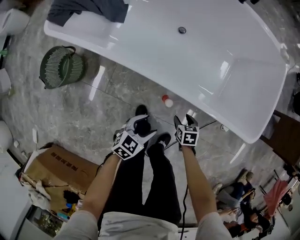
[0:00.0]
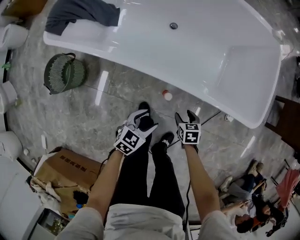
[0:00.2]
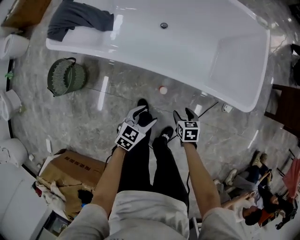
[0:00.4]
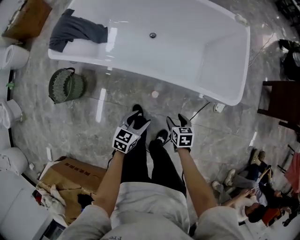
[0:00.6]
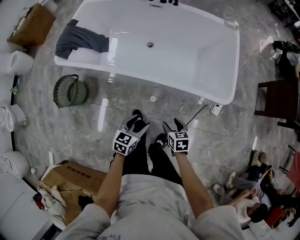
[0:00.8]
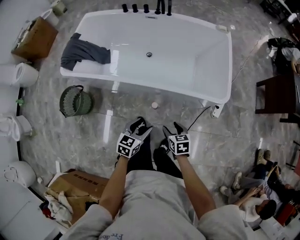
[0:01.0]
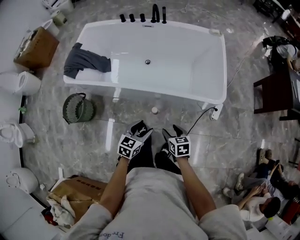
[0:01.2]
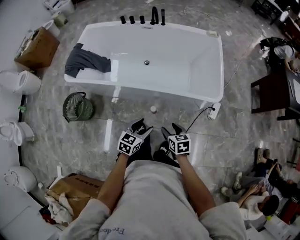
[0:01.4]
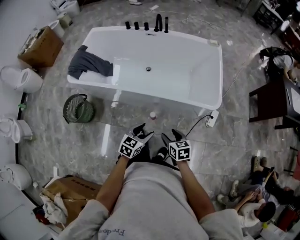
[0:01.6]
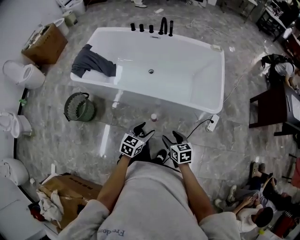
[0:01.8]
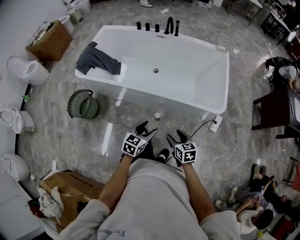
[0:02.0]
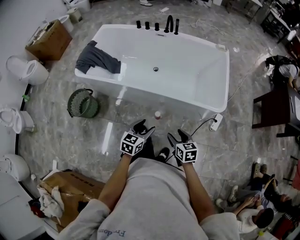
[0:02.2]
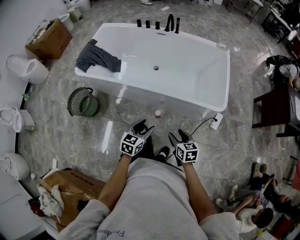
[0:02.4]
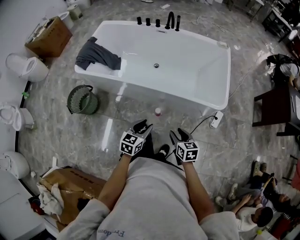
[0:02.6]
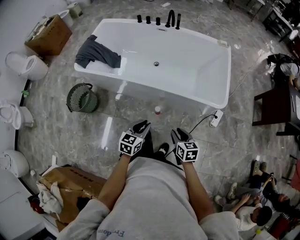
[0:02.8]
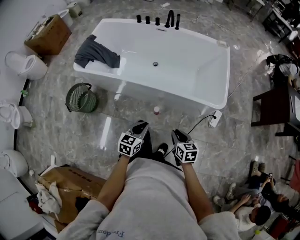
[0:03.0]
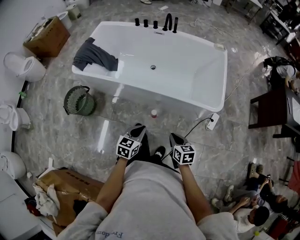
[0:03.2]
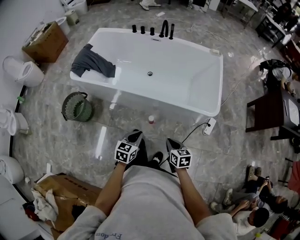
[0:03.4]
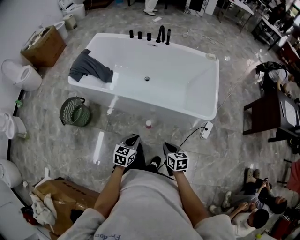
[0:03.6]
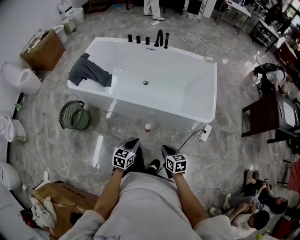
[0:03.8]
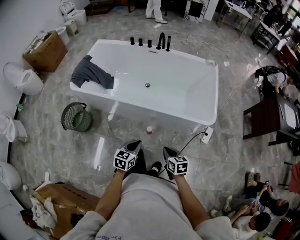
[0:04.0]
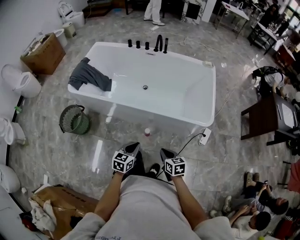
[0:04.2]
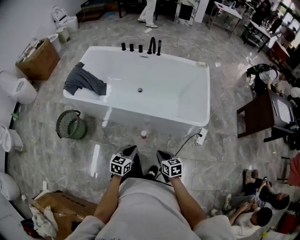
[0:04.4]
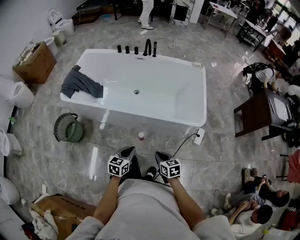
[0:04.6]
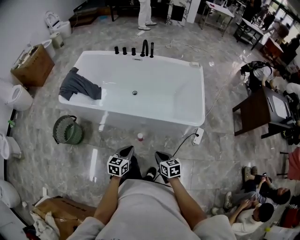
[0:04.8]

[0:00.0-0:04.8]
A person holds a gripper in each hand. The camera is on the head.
0:00.0 to 0:01.6: The left gripper moves upward and to the right, about 30 cm, while the right gripper goes approximately 40 cm upward and backward, and swivels some 30 degrees.
0:01.6 to 0:03.2: The left gripper closes its fingers. The right gripper closes up.
0:03.2 to 0:04.8: The grippers stay close to where they were, moving slightly.

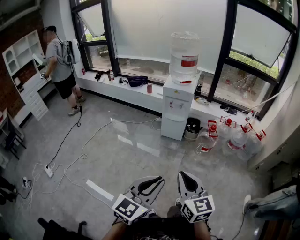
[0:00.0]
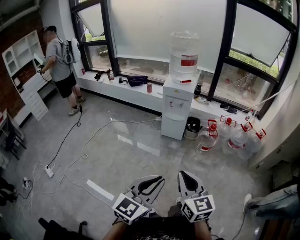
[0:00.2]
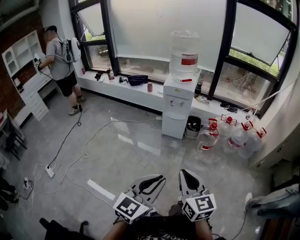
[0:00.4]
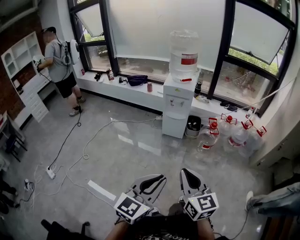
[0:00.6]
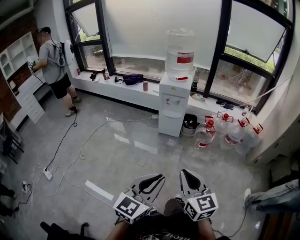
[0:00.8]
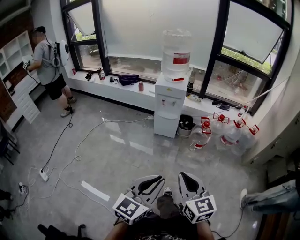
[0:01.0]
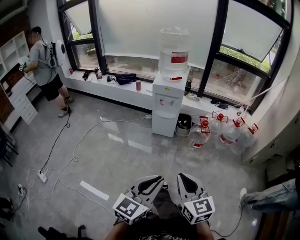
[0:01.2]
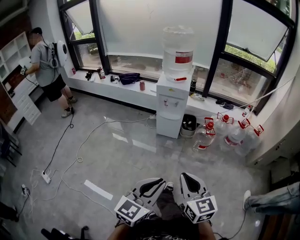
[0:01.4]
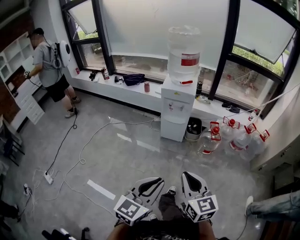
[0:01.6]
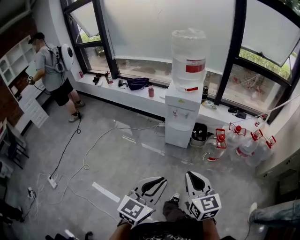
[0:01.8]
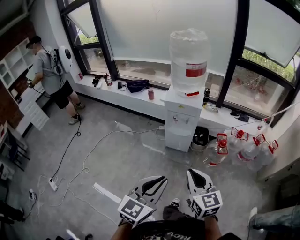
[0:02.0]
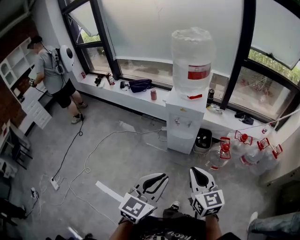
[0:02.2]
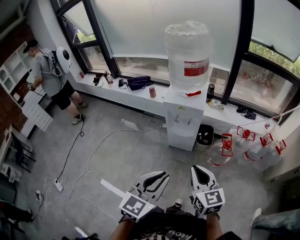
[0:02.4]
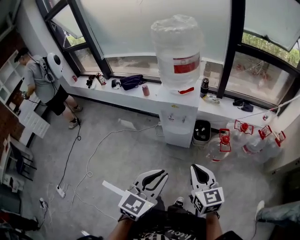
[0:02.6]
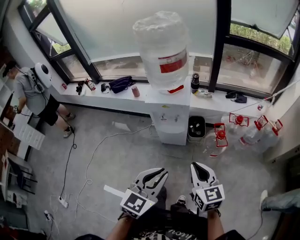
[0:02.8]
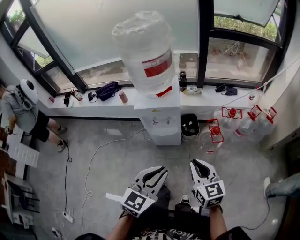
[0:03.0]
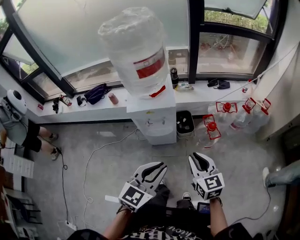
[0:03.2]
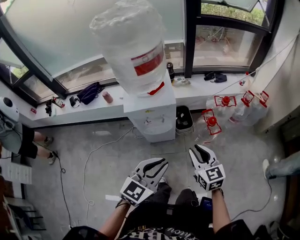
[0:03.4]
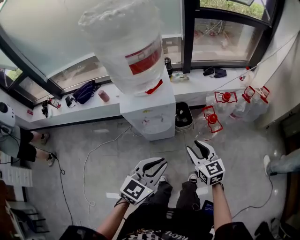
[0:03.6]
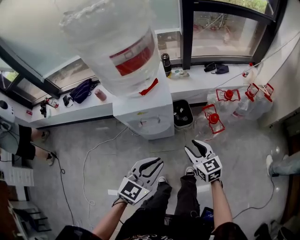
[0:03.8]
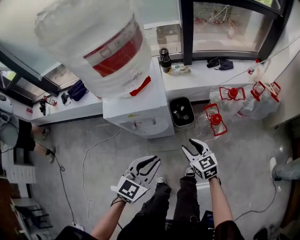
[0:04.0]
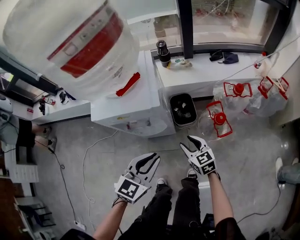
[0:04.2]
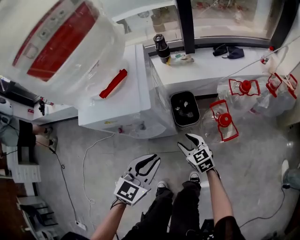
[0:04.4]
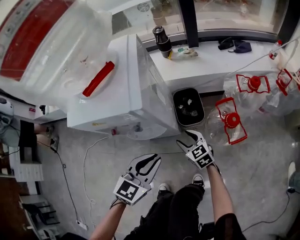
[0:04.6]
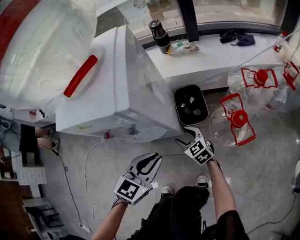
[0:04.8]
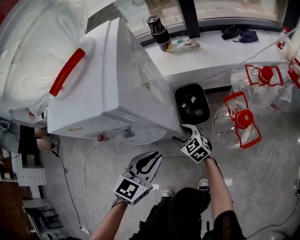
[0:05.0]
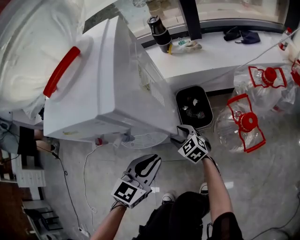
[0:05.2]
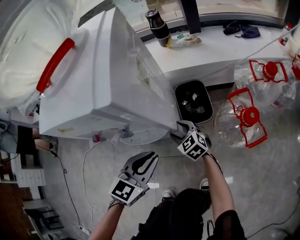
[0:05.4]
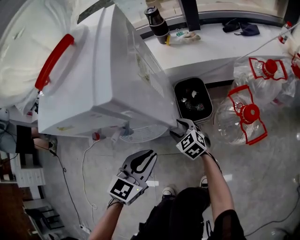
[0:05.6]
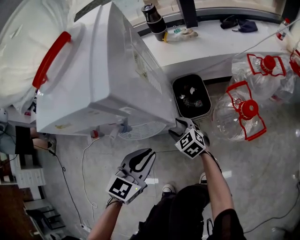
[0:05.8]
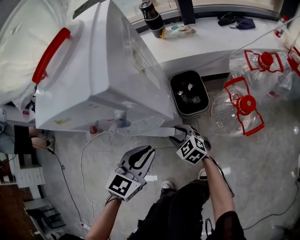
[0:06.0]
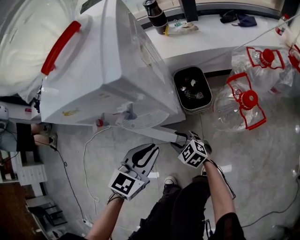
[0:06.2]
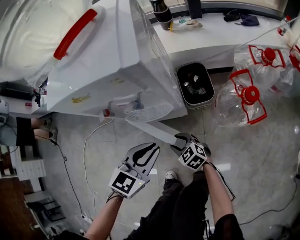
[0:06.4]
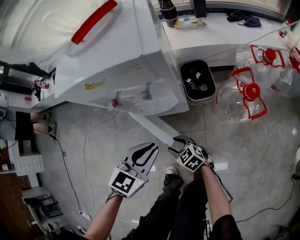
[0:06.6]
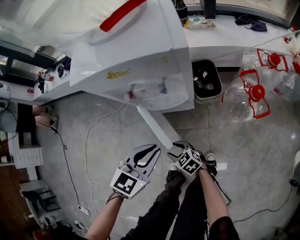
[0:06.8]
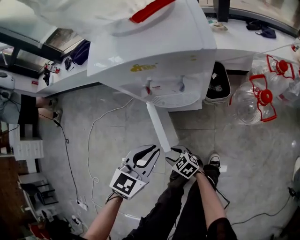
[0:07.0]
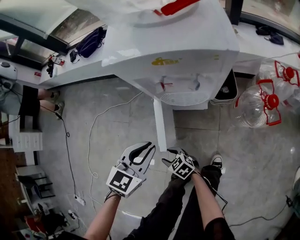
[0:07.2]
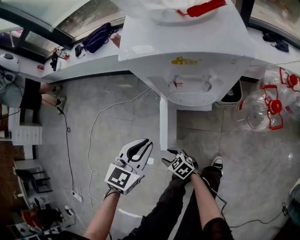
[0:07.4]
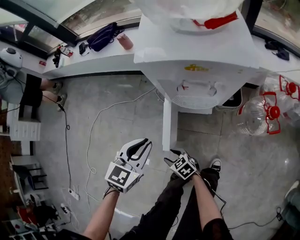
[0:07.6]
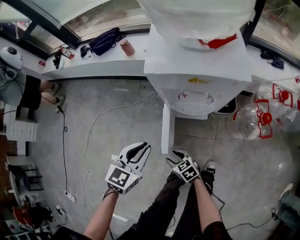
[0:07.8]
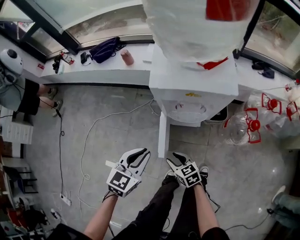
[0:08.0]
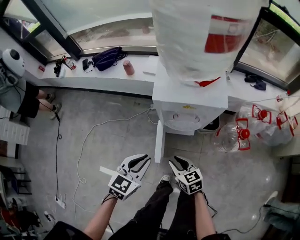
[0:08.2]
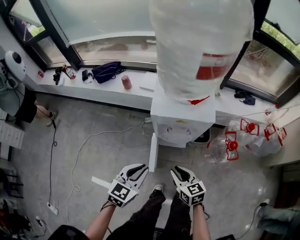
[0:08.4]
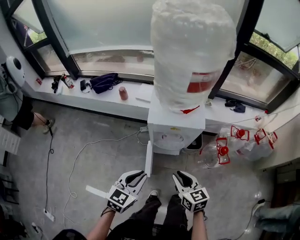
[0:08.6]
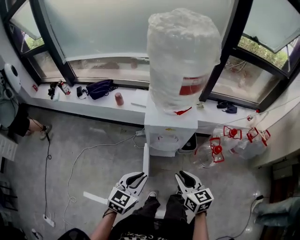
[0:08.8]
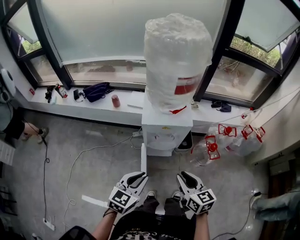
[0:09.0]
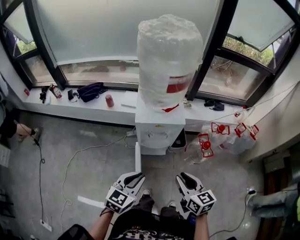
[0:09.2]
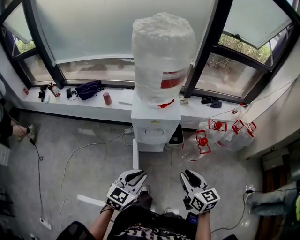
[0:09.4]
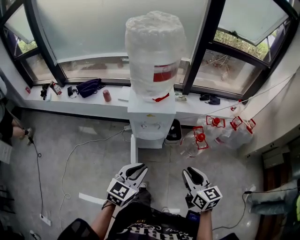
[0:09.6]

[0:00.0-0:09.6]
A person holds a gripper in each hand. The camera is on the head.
0:00.0 to 0:01.6: Both grippers travel together forward, approximately 15 cm.
0:01.6 to 0:03.2: The pair of grippers is taken forward, approximately 40 cm. The left gripper turns by some 20 degrees.
0:03.2 to 0:04.8: The grippers both shift downward and forward by about 60 cm. The right gripper changes its angle by approximately 30 degrees, and opens its fingers.
0:04.8 to 0:06.4: The left gripper is displaced to the left by approximately 5 cm. Meanwhile the right gripper goes roughly 15 cm backward, to the left and downward.
0:06.4 to 0:08.0: The right gripper is displaced upward and to the left by some 25 cm; the left gripper heads to the left and upward, covering roughly 30 cm.
0:08.0 to 0:09.6: The right gripper moves upward and to the right, some 50 cm, and swivels about 40 degrees; the left gripper goes approximately 30 cm upward, backward and to the right.

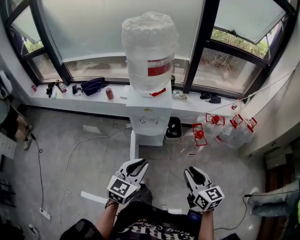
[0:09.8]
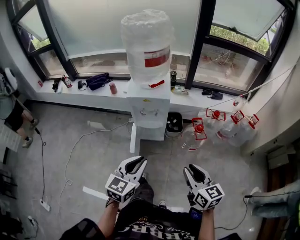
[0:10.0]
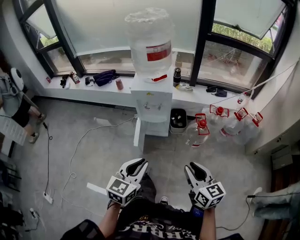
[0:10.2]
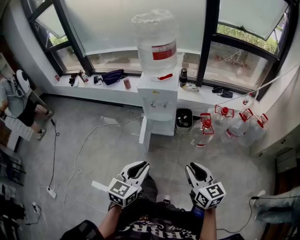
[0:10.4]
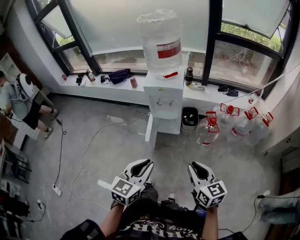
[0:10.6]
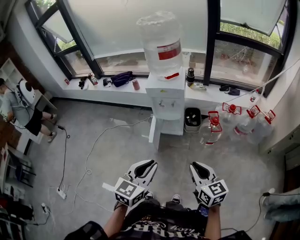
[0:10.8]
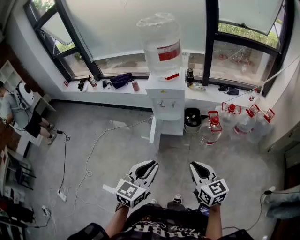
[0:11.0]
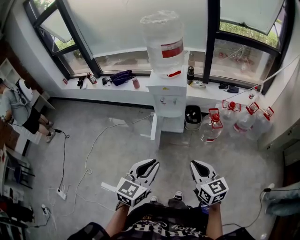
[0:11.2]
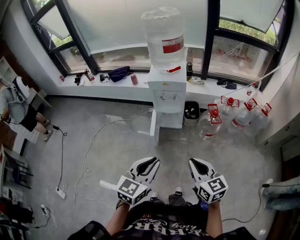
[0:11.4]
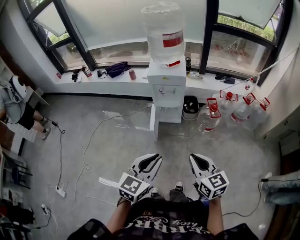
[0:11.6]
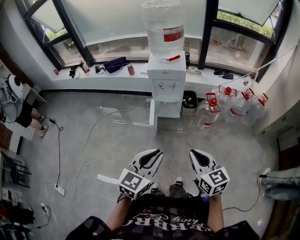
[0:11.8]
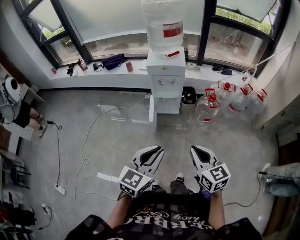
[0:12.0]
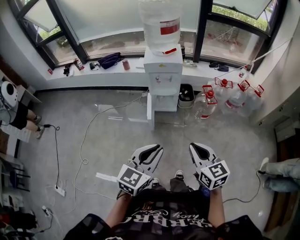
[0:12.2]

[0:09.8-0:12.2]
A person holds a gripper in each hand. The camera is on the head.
0:09.8 to 0:11.0: The two grippers go about 20 cm backward.
0:11.0 to 0:12.2: The grippers both shift to the left and backward by some 10 cm.

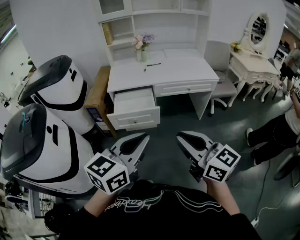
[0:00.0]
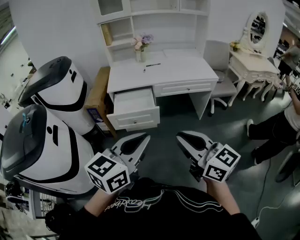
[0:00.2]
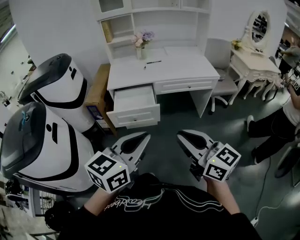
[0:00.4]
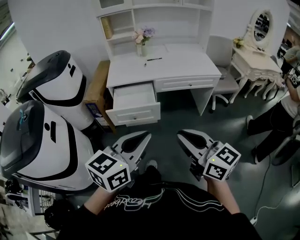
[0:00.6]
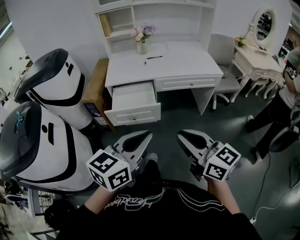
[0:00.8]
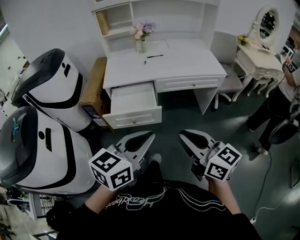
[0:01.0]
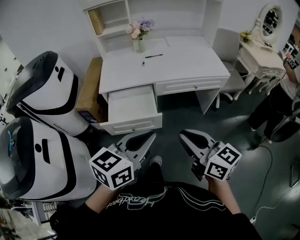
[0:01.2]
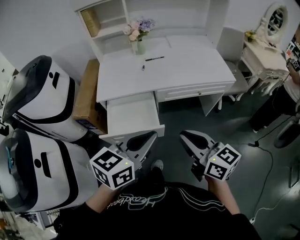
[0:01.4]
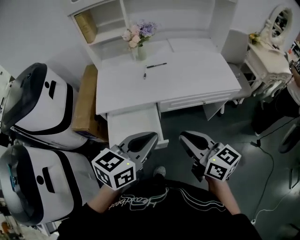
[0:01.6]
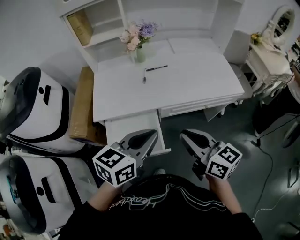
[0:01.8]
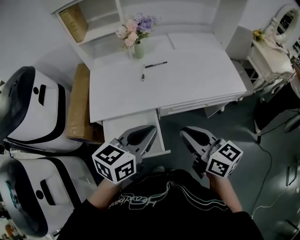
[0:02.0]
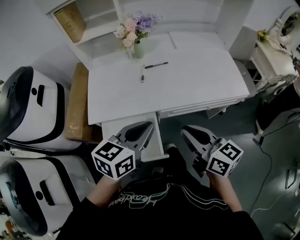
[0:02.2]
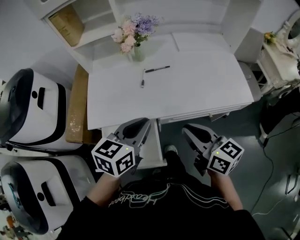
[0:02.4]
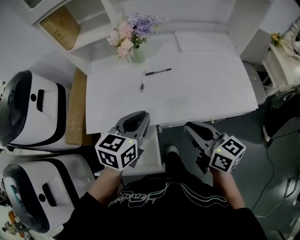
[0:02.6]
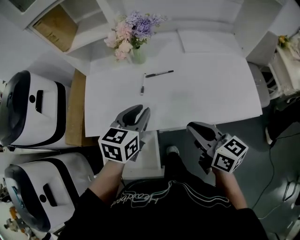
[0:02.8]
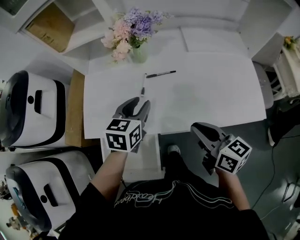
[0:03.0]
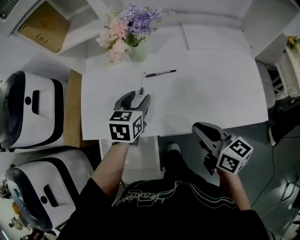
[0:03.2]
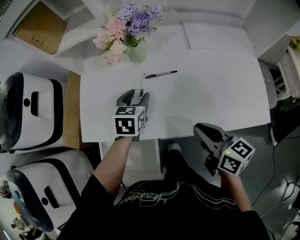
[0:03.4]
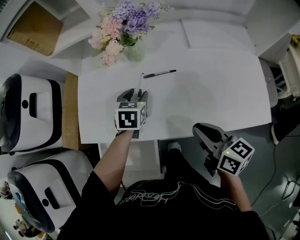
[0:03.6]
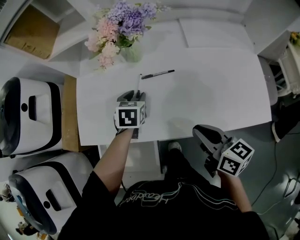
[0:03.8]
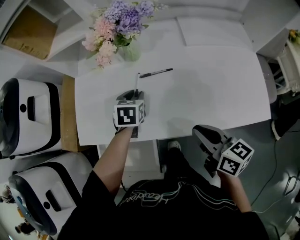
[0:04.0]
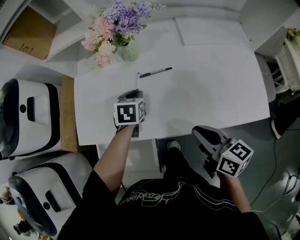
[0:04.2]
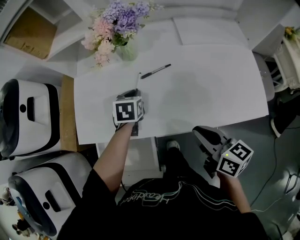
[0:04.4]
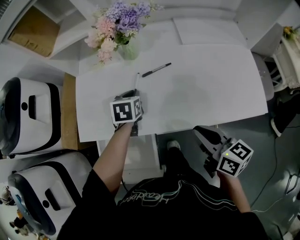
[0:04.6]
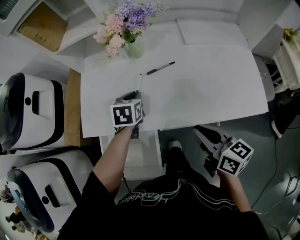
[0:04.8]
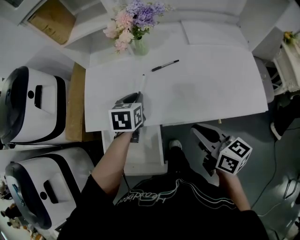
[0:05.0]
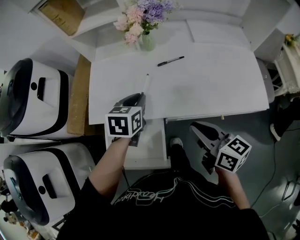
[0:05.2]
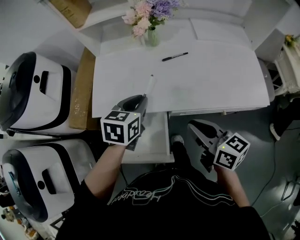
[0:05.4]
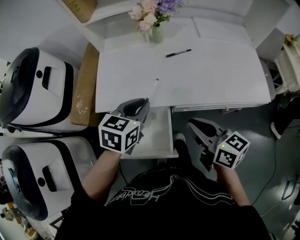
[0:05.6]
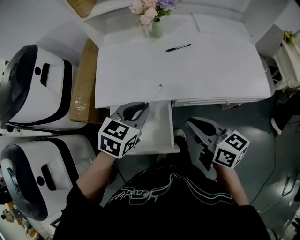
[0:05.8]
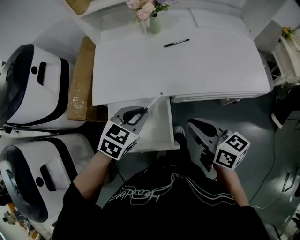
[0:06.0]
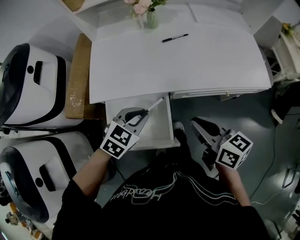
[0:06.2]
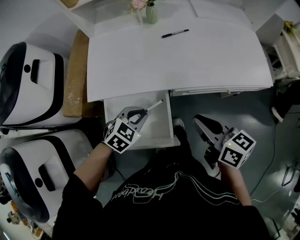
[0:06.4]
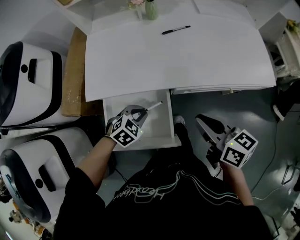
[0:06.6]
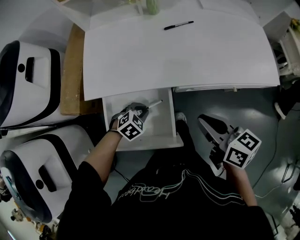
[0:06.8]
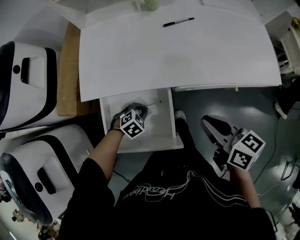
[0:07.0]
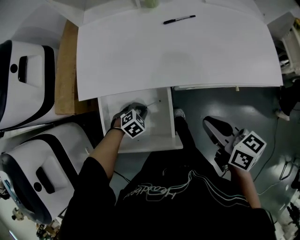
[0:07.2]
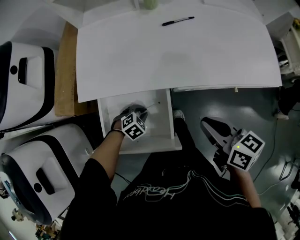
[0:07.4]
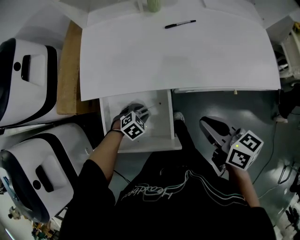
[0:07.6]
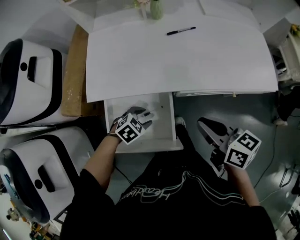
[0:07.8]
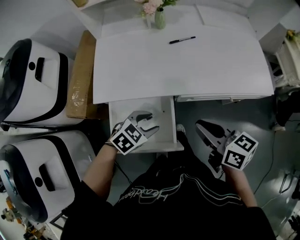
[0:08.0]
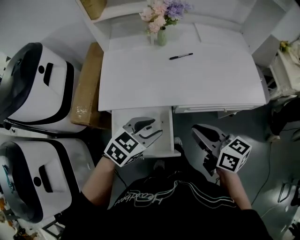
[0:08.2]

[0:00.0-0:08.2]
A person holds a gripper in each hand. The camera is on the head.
0:00.0 to 0:01.6: Both grippers travel together forward, approximately 40 cm.
0:01.6 to 0:03.2: The left gripper heads forward and downward, covering approximately 50 cm, changes its angle by about 40 degrees, and opens. The right gripper moves forward, roughly 35 cm.
0:03.2 to 0:05.0: The right gripper goes some 5 cm backward, while the left gripper reaches approximately 10 cm downward, then returns, and closes up.
0:05.0 to 0:06.6: The right gripper moves backward and to the left, about 10 cm, while the left gripper shifts roughly 25 cm backward and downward, and rolls clockwise, seen from behind, by roughly 40 degrees.
0:06.6 to 0:08.2: The right gripper heads upward, covering roughly 5 cm; the left gripper is displaced upward by about 15 cm, rotates about 30 degrees, and opens its fingers.
